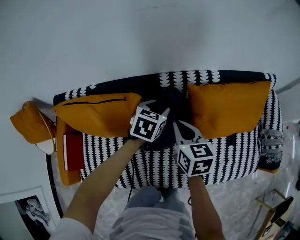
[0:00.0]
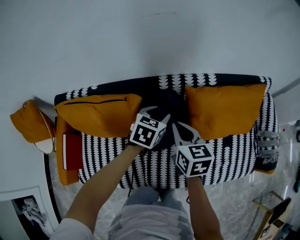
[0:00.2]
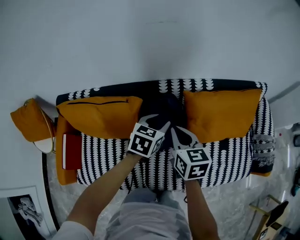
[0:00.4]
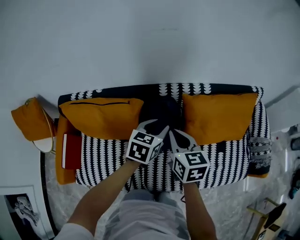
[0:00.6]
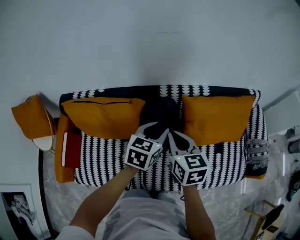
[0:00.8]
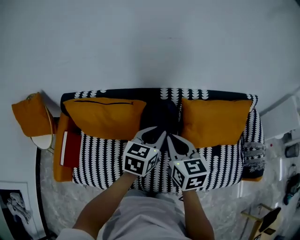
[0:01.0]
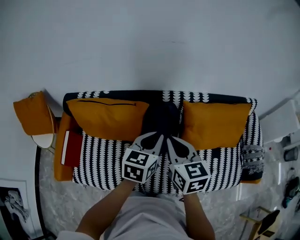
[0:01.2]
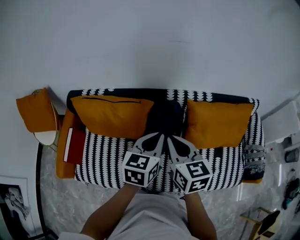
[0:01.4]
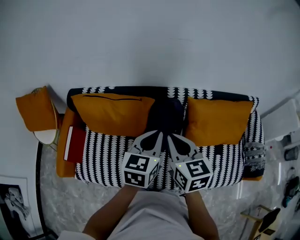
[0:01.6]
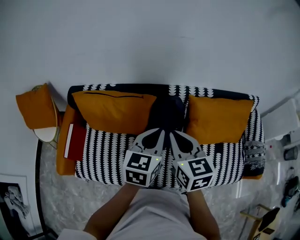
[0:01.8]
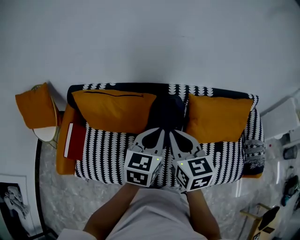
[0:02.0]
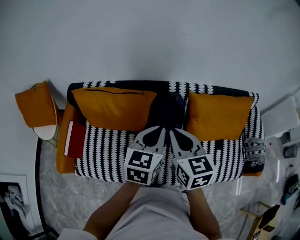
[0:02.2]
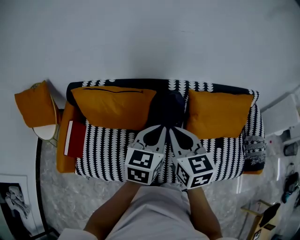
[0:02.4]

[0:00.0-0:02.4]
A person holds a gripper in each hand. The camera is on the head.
0:00.0 to 0:01.2: The grippers both shift upward and backward by roughly 20 cm. The left gripper rotates approximately 20 degrees, and closes up.
0:01.2 to 0:02.4: The right gripper shifts by roughly 5 cm, while the left gripper ends up roughly 5 cm from where it was.

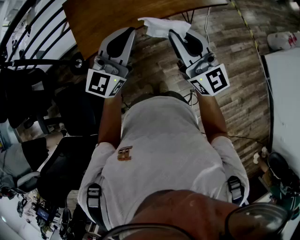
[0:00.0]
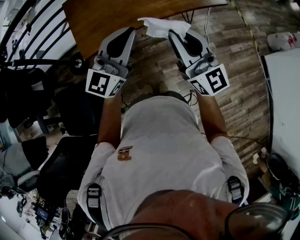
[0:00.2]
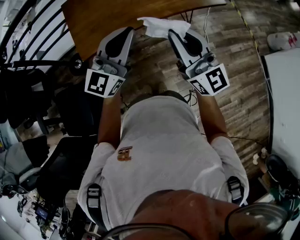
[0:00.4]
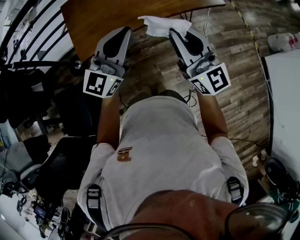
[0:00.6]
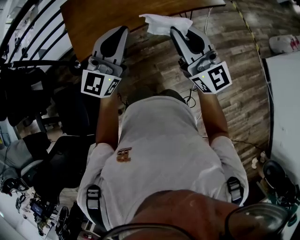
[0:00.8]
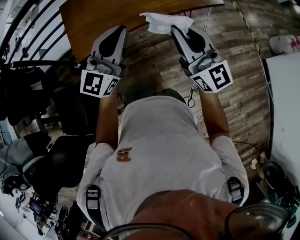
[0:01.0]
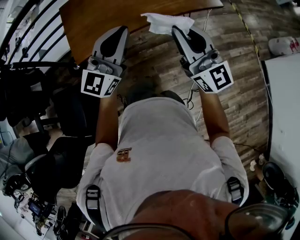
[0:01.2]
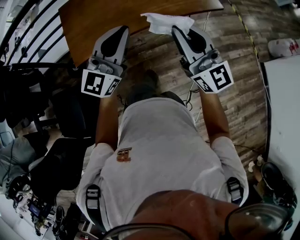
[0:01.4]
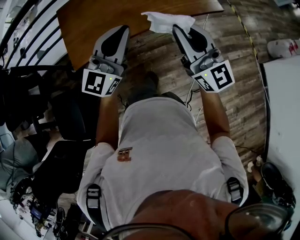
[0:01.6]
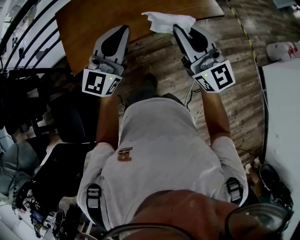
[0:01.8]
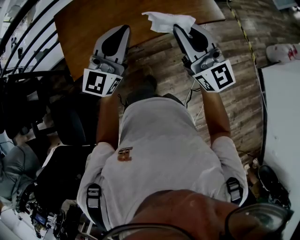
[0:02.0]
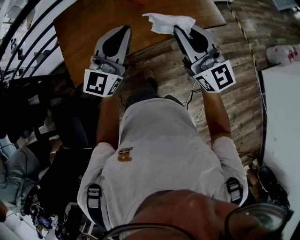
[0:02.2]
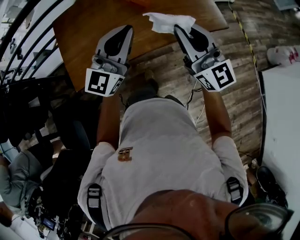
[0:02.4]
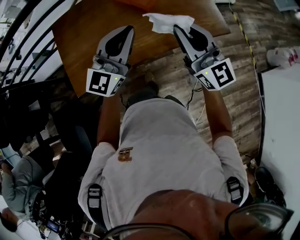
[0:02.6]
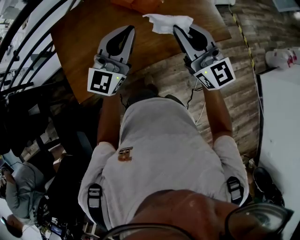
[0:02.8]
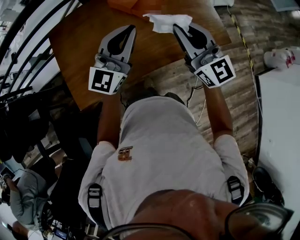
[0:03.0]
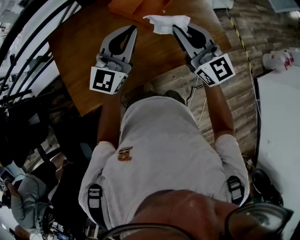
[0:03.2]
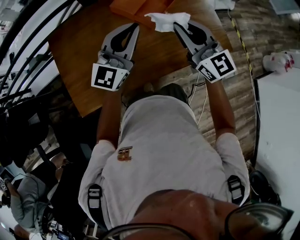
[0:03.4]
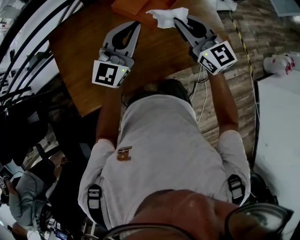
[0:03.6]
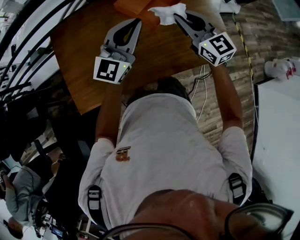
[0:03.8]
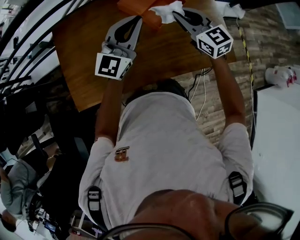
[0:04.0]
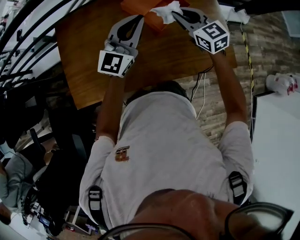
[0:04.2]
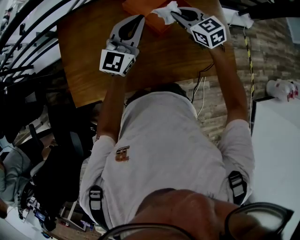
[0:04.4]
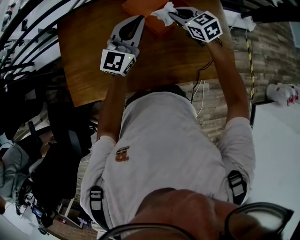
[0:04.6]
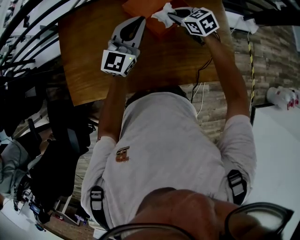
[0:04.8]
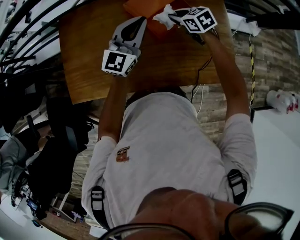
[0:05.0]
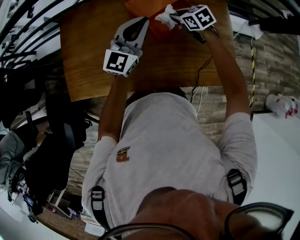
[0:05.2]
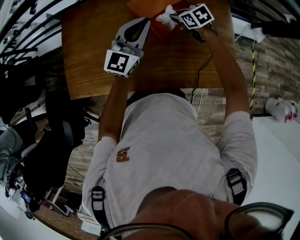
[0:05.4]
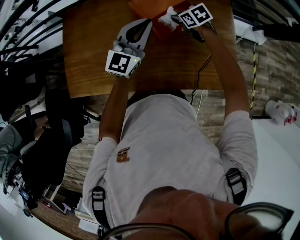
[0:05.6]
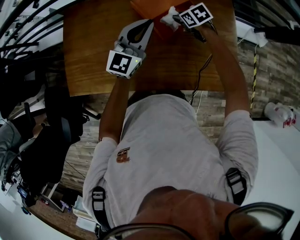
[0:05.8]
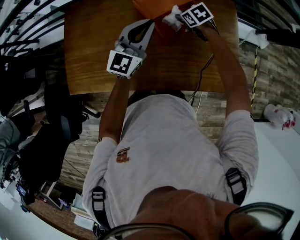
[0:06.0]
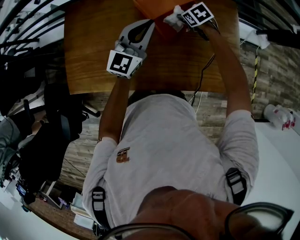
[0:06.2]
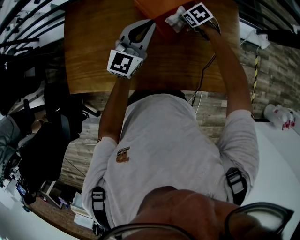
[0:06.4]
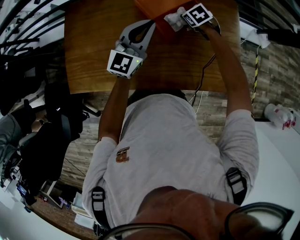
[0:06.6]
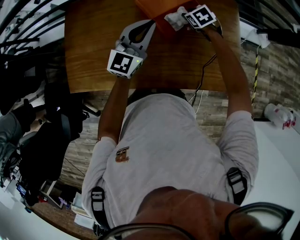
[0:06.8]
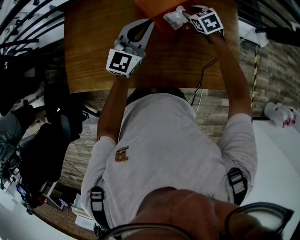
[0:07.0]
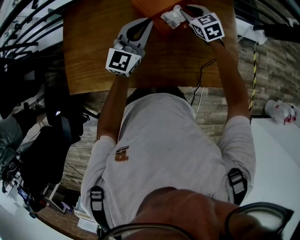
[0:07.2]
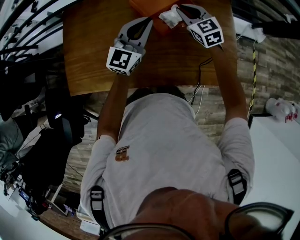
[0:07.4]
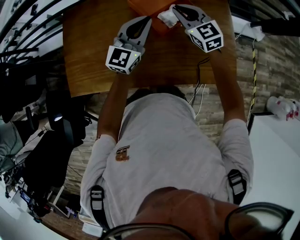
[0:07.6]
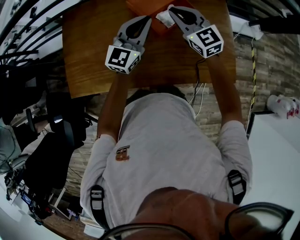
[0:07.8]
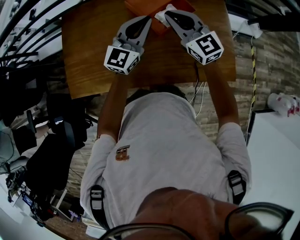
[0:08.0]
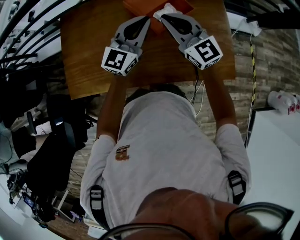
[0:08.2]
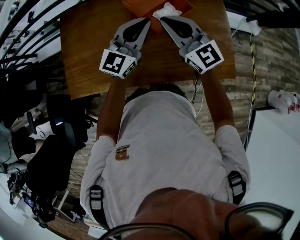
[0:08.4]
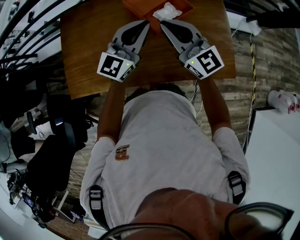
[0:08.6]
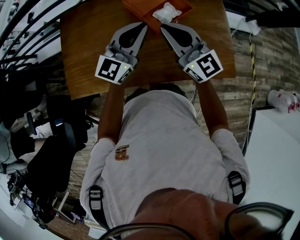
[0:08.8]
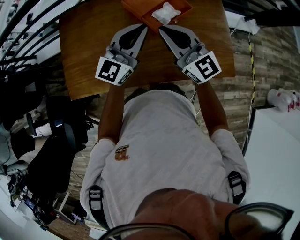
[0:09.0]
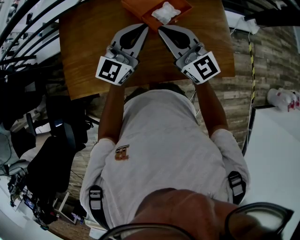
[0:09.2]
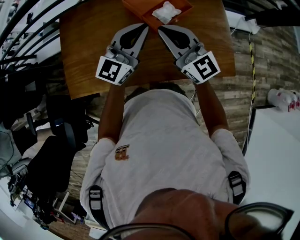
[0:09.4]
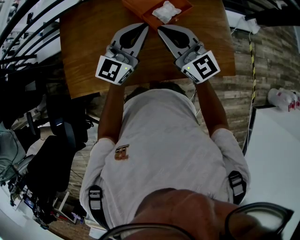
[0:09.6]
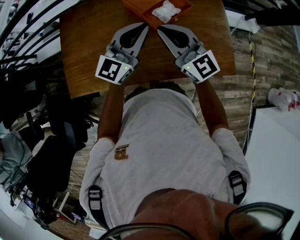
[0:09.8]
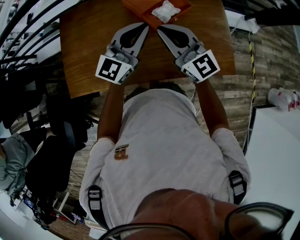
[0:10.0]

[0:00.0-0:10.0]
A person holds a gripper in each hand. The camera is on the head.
0:00.0 to 0:01.4: Both grippers travel together to the right and forward, about 10 cm.
0:01.4 to 0:02.8: Both grippers move forward, about 30 cm.
0:02.8 to 0:04.2: The right gripper goes about 30 cm forward and downward, and turns by some 30 degrees. Meanwhile the left gripper travels forward by about 20 cm.
0:04.2 to 0:05.8: The left gripper goes roughly 10 cm forward and to the right. Meanwhile the right gripper travels downward and forward by approximately 20 cm, and angles its fingers downward, by some 30 degrees.
0:05.8 to 0:07.2: The right gripper is displaced upward by roughly 10 cm, and rotates approximately 30 degrees.
0:07.2 to 0:08.6: The right gripper is displaced backward and upward by roughly 25 cm, and tips its fingers upward by roughly 40 degrees. Meanwhile the left gripper goes about 10 cm backward and upward.
0:08.6 to 0:10.0: There are only small adjustments of the grippers.

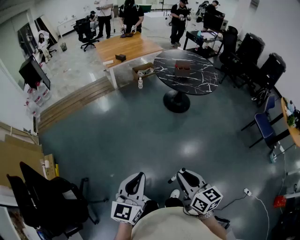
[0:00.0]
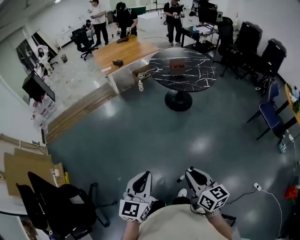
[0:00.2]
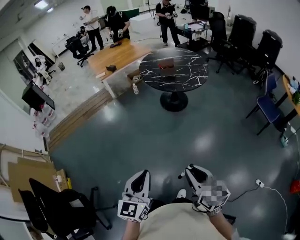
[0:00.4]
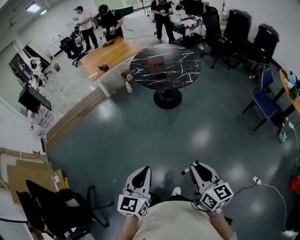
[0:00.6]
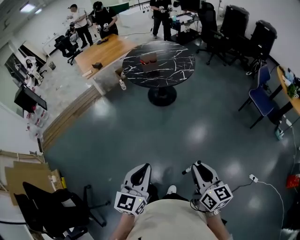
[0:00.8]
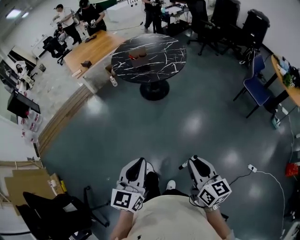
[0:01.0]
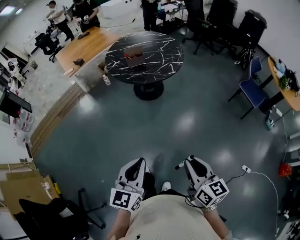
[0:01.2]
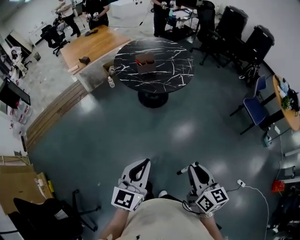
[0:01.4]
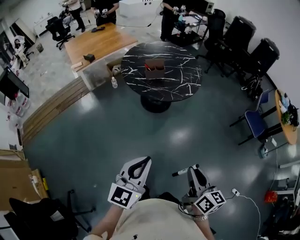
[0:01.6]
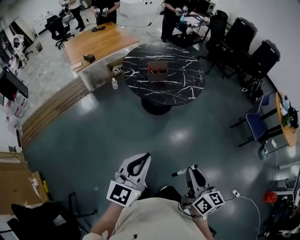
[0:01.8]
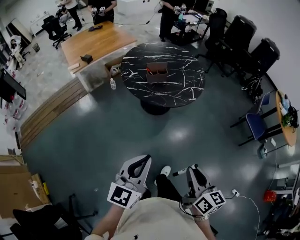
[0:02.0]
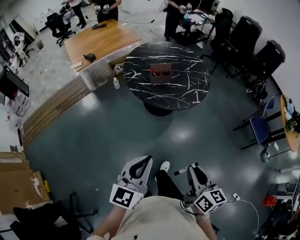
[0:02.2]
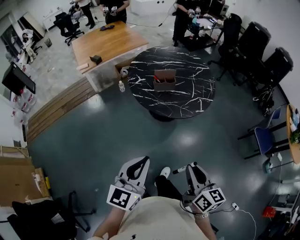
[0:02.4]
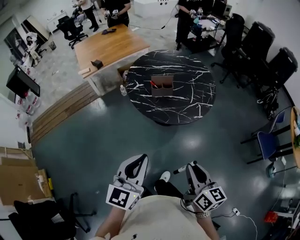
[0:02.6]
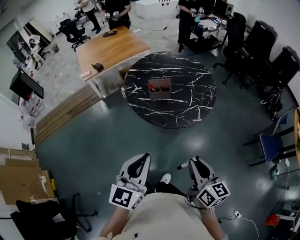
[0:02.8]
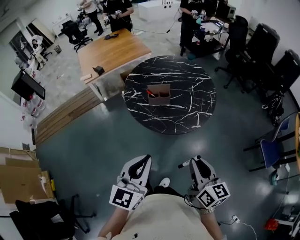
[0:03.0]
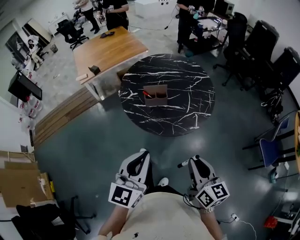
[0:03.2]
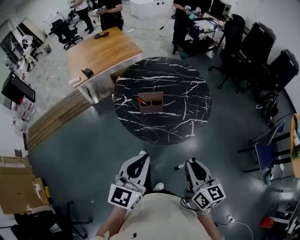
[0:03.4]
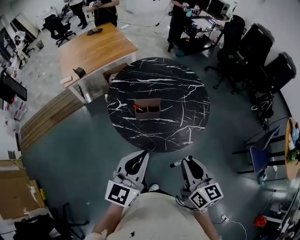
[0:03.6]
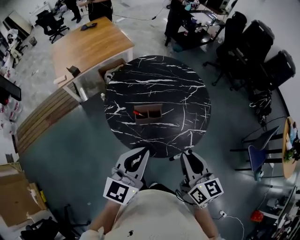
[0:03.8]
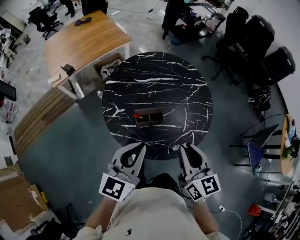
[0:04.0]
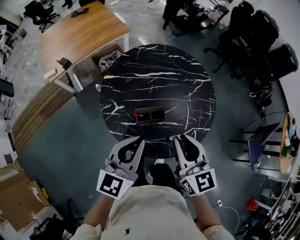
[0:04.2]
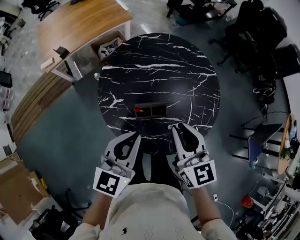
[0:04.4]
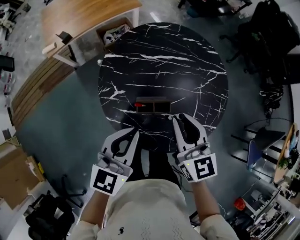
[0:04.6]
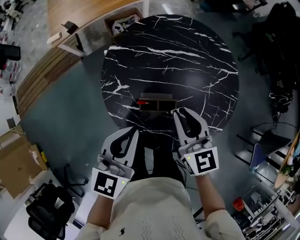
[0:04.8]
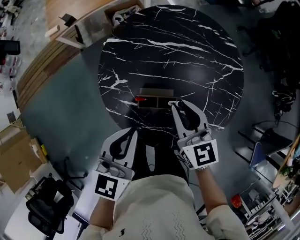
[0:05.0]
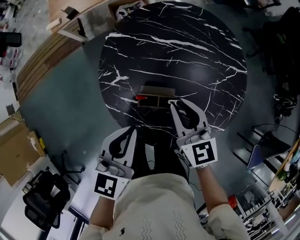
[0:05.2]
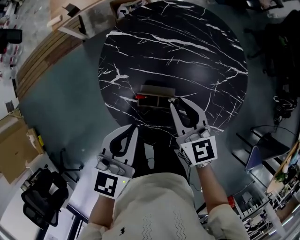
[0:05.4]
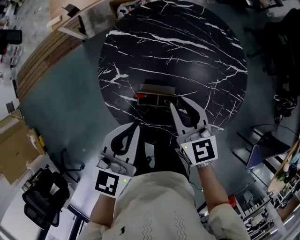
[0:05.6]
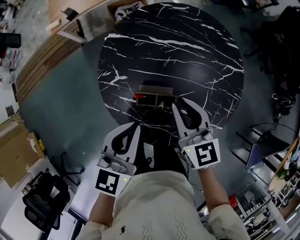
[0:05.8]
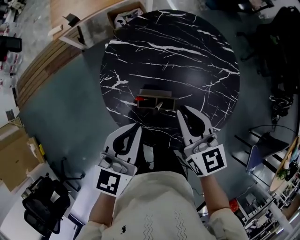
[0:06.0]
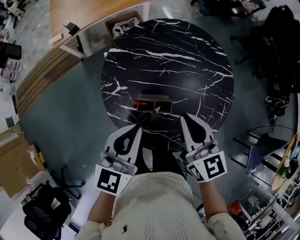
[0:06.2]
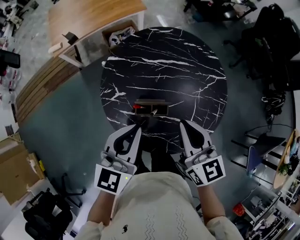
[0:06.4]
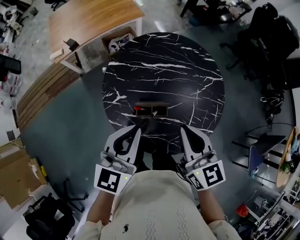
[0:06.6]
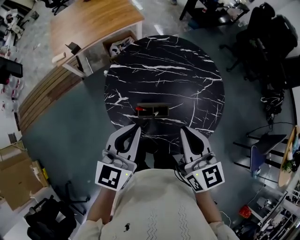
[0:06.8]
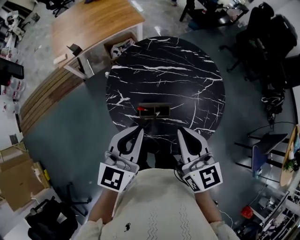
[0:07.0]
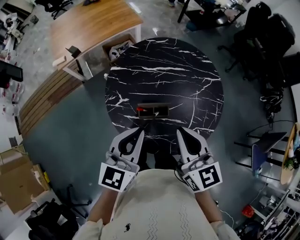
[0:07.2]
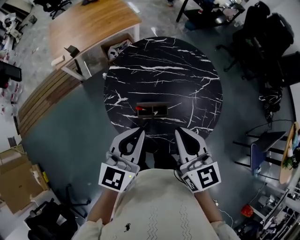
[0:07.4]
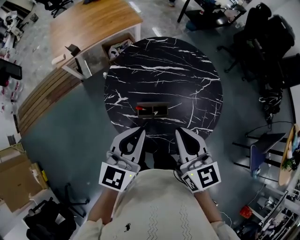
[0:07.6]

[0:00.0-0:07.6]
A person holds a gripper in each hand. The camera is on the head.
0:00.0 to 0:01.6: Both grippers travel together forward and to the right, about 35 cm. The right gripper swivels some 30 degrees.
0:01.6 to 0:03.0: The two grippers go approximately 30 cm forward.
0:03.0 to 0:04.6: Both grippers are carried forward, some 40 cm. The right gripper changes its angle by about 20 degrees.
0:04.6 to 0:06.0: The right gripper goes downward and returns, approximately 10 cm each way.
0:06.0 to 0:07.6: The left gripper goes about 5 cm upward. Meanwhile the right gripper goes approximately 15 cm upward and backward.

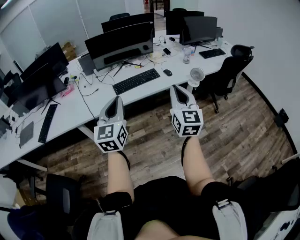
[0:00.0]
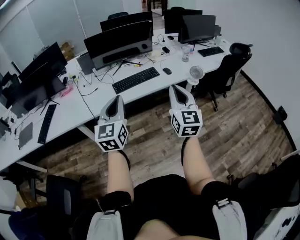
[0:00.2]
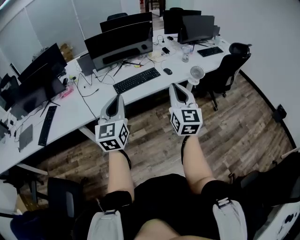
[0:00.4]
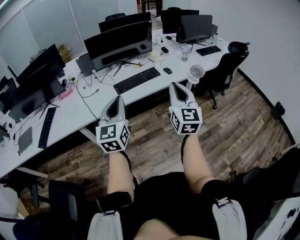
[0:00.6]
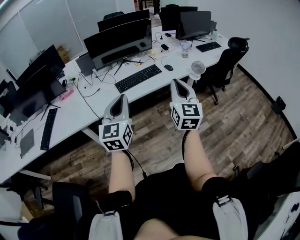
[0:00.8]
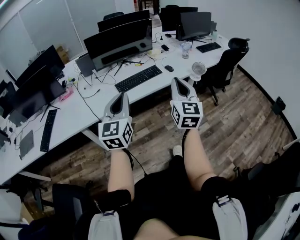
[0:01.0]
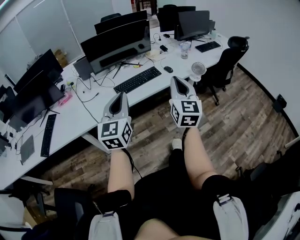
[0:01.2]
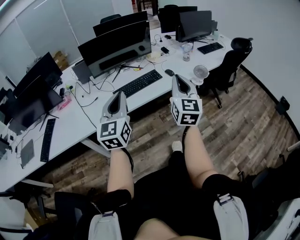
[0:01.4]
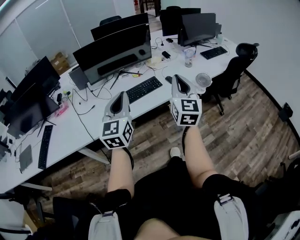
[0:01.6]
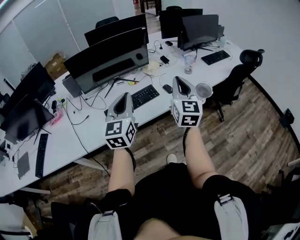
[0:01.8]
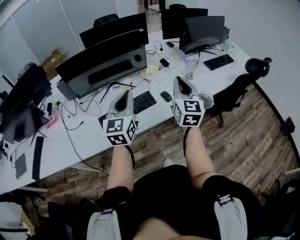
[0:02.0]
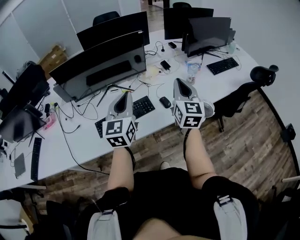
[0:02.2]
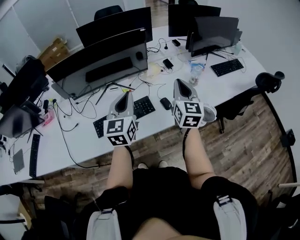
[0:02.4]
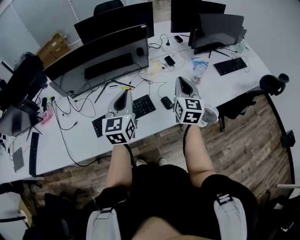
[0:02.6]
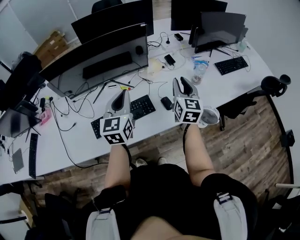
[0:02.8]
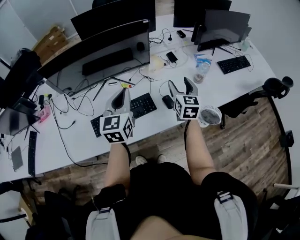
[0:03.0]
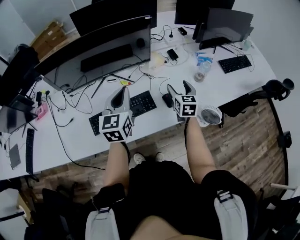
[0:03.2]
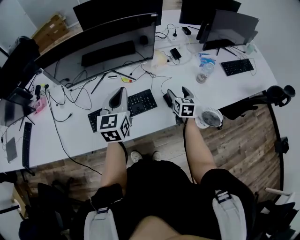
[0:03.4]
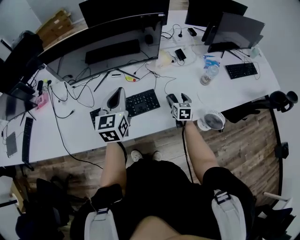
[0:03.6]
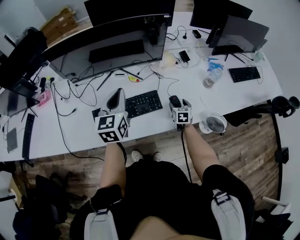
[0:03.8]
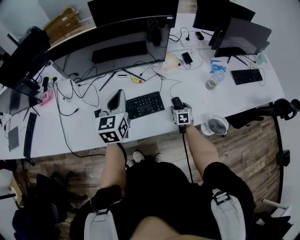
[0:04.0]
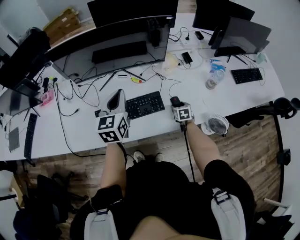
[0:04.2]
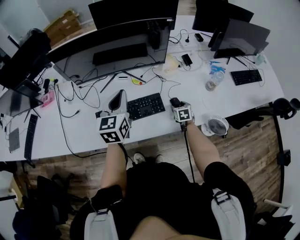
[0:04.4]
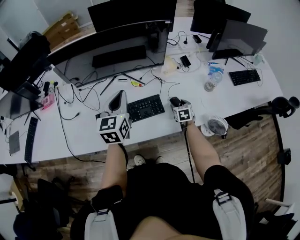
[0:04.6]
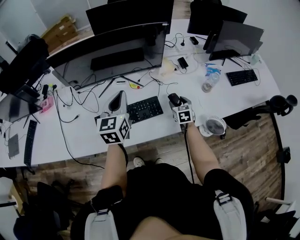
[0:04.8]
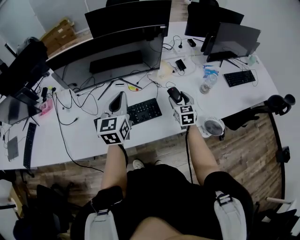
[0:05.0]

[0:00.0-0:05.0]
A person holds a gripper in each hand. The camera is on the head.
0:00.0 to 0:01.6: Both grippers move forward, some 20 cm.
0:01.6 to 0:03.4: The left gripper goes approximately 35 cm forward, while the right gripper shifts roughly 50 cm forward and downward, angles its fingers downward, by approximately 40 degrees, and opens.
0:03.4 to 0:05.0: The right gripper travels downward and back again, roughly 15 cm each way.
